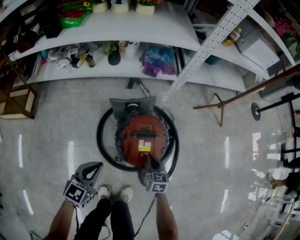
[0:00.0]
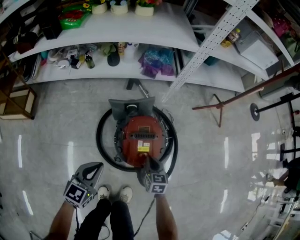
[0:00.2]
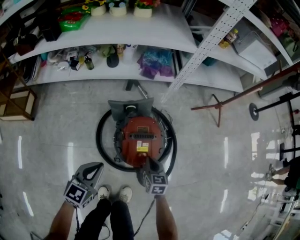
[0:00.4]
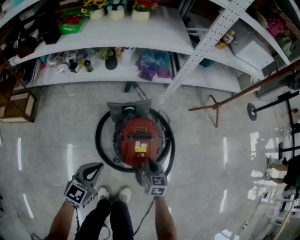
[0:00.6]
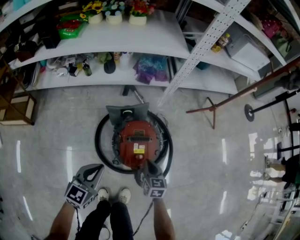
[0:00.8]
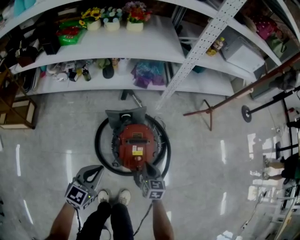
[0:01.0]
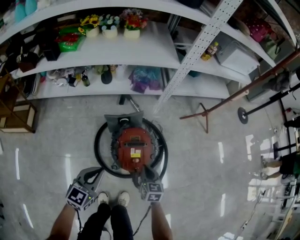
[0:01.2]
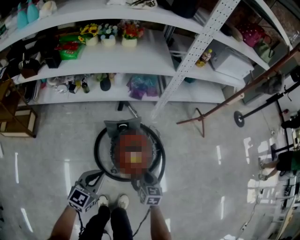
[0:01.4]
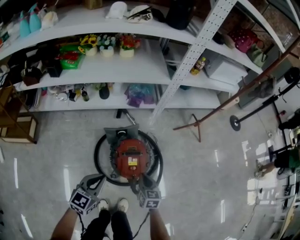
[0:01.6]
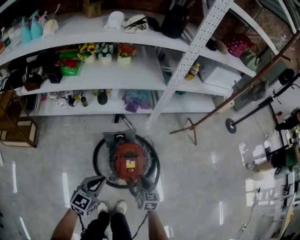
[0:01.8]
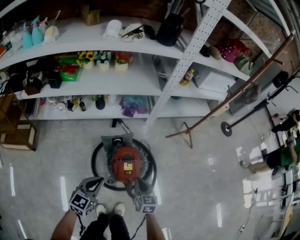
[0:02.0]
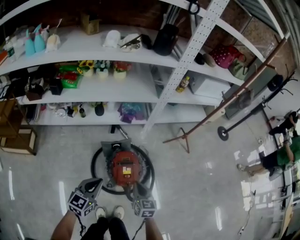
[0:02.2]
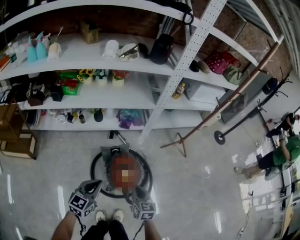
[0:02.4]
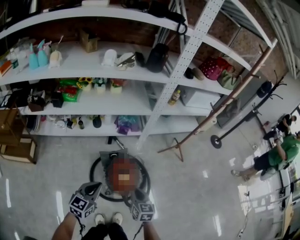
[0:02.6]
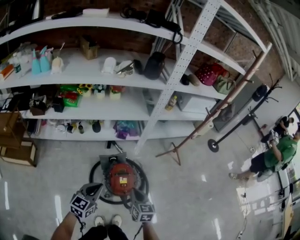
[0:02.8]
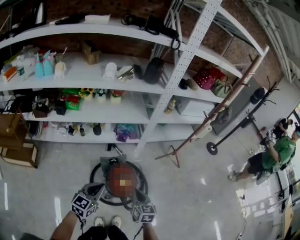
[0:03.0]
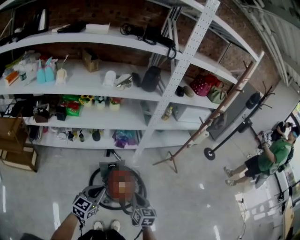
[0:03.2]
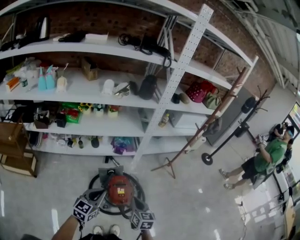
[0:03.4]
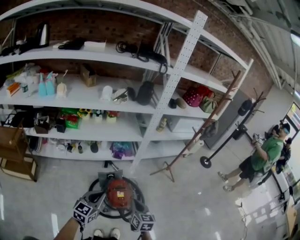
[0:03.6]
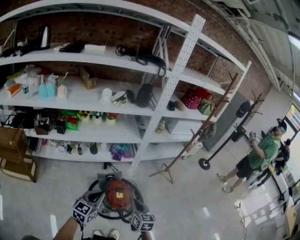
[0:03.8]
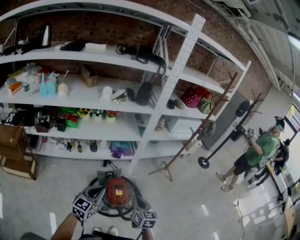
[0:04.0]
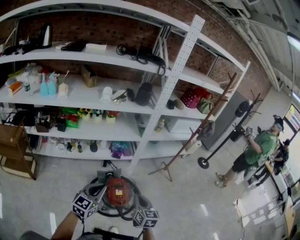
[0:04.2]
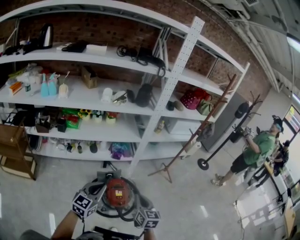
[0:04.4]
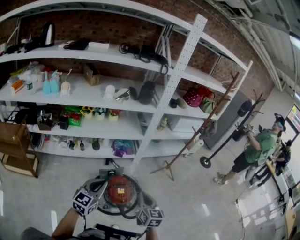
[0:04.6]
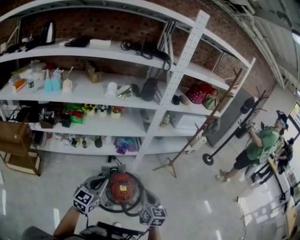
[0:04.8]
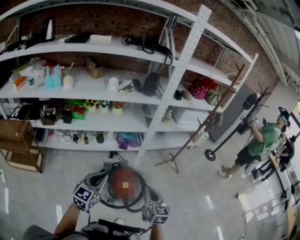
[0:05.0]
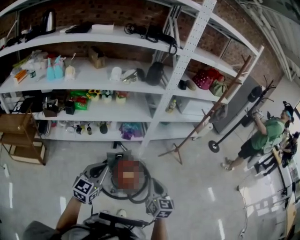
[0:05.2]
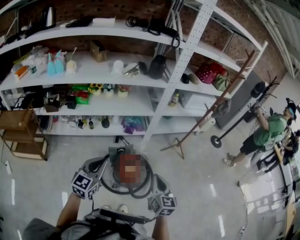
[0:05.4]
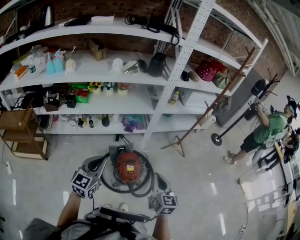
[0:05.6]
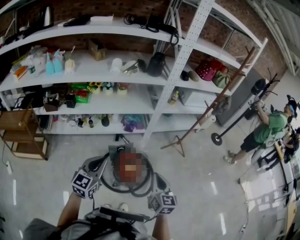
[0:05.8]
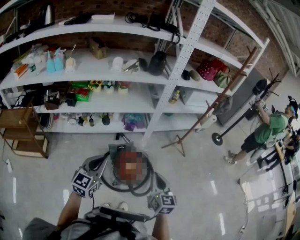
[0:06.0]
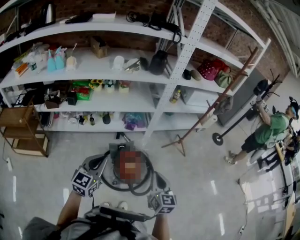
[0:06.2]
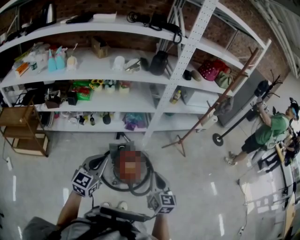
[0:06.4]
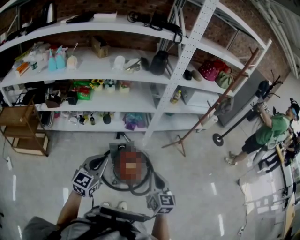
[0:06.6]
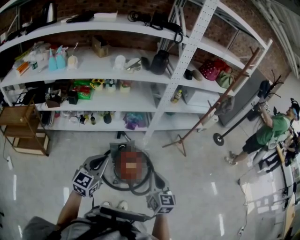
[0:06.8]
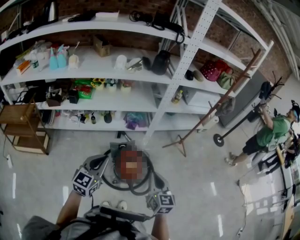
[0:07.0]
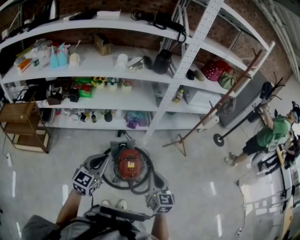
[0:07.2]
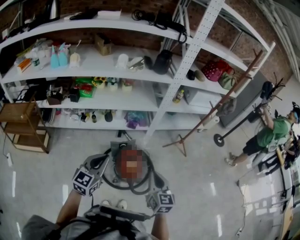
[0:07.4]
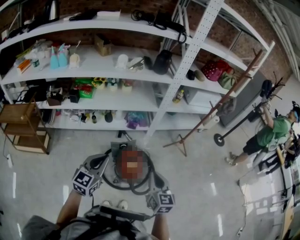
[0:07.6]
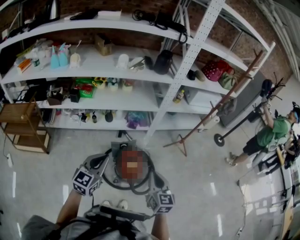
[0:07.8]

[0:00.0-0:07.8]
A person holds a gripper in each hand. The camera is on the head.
0:00.0 to 0:01.6: The two grippers go approximately 20 cm upward.
0:01.6 to 0:03.2: The two grippers go some 25 cm upward.
0:03.2 to 0:04.6: The grippers both shift upward by roughly 10 cm.
0:04.6 to 0:07.8: There are only small adjustments of the grippers.

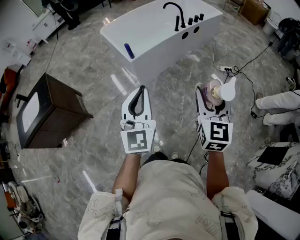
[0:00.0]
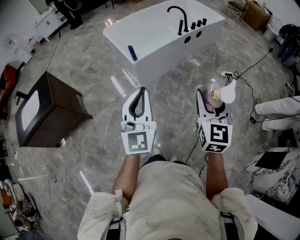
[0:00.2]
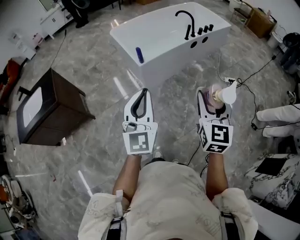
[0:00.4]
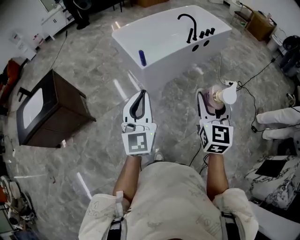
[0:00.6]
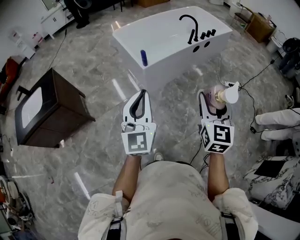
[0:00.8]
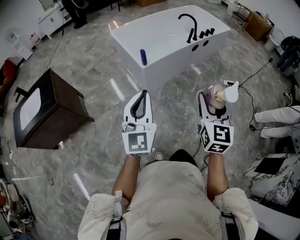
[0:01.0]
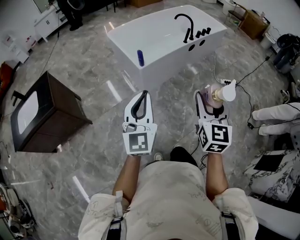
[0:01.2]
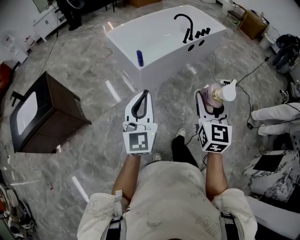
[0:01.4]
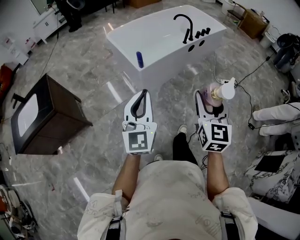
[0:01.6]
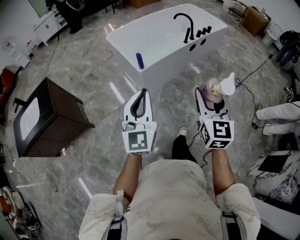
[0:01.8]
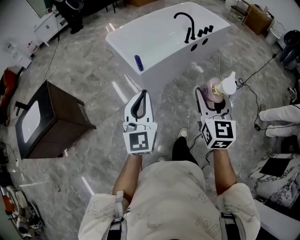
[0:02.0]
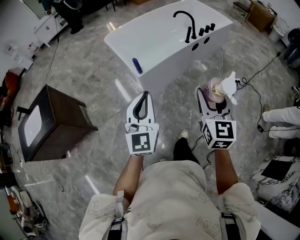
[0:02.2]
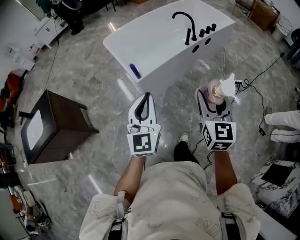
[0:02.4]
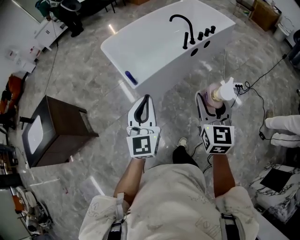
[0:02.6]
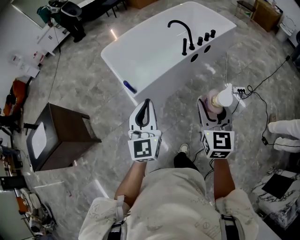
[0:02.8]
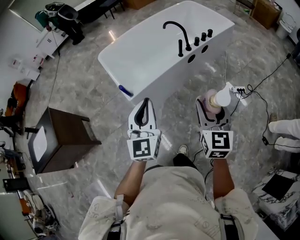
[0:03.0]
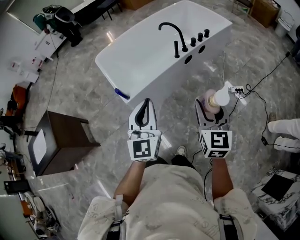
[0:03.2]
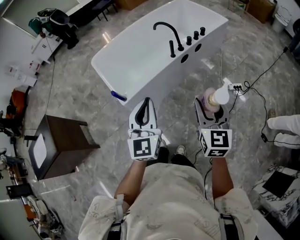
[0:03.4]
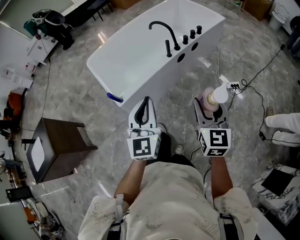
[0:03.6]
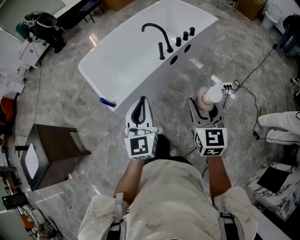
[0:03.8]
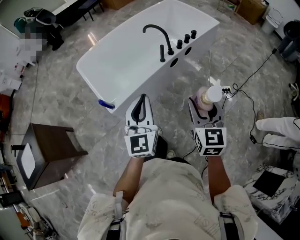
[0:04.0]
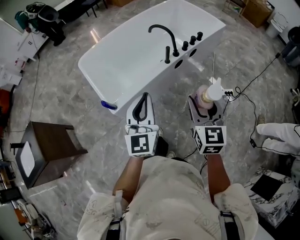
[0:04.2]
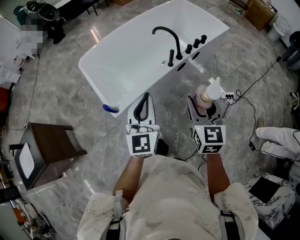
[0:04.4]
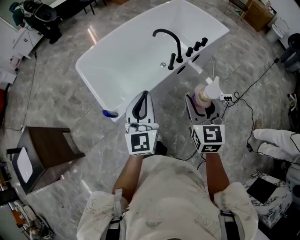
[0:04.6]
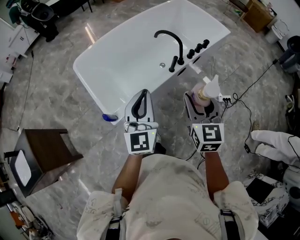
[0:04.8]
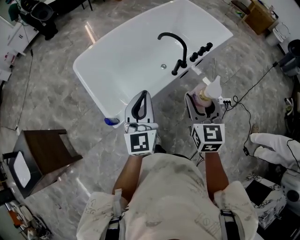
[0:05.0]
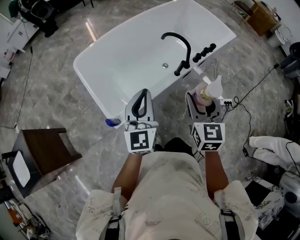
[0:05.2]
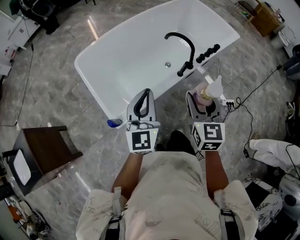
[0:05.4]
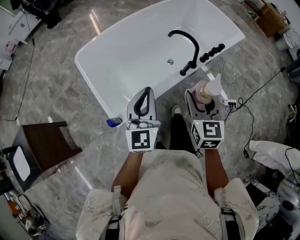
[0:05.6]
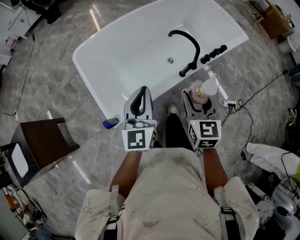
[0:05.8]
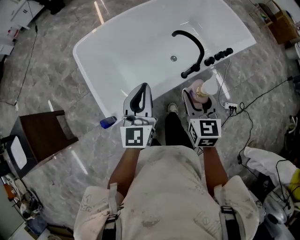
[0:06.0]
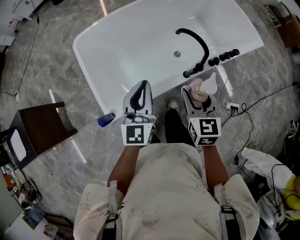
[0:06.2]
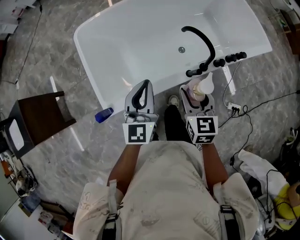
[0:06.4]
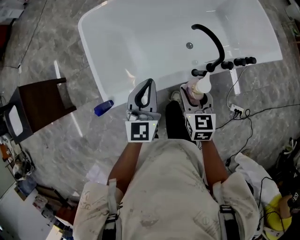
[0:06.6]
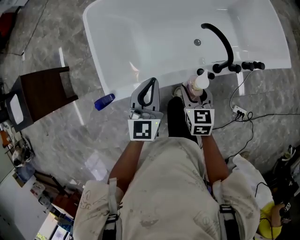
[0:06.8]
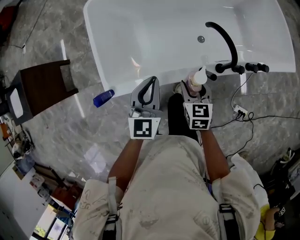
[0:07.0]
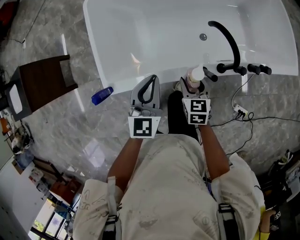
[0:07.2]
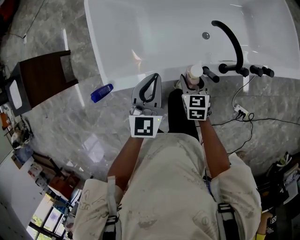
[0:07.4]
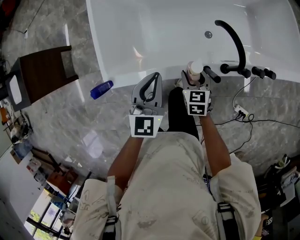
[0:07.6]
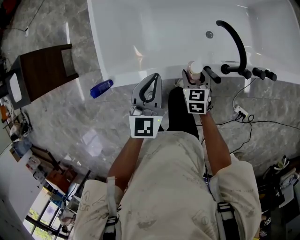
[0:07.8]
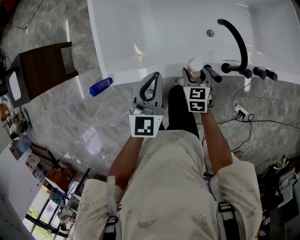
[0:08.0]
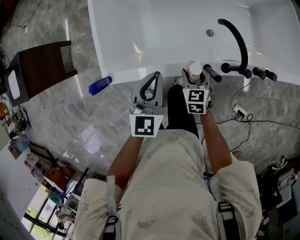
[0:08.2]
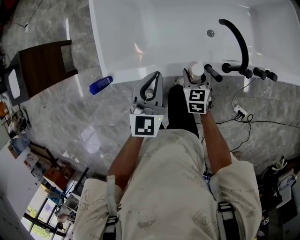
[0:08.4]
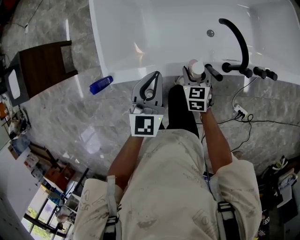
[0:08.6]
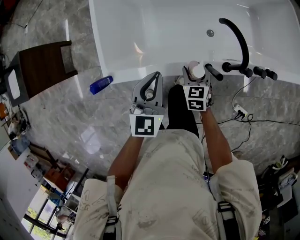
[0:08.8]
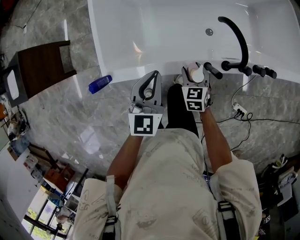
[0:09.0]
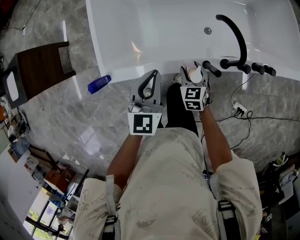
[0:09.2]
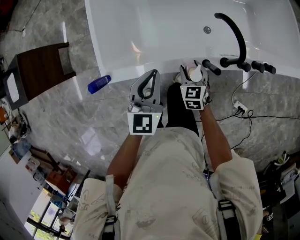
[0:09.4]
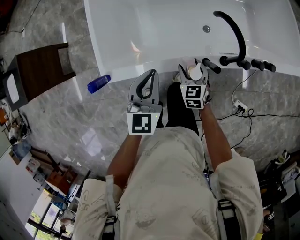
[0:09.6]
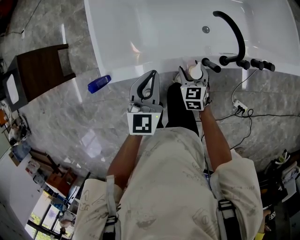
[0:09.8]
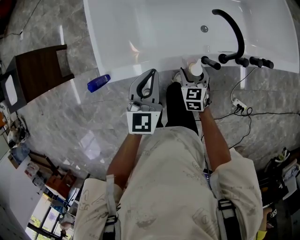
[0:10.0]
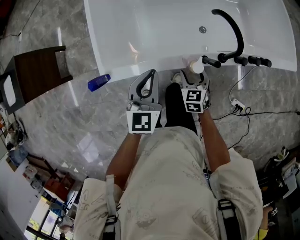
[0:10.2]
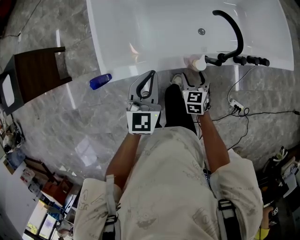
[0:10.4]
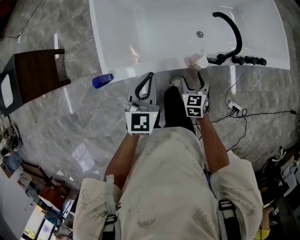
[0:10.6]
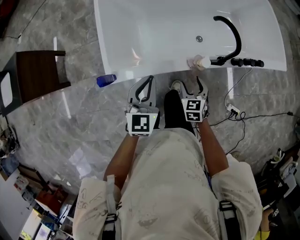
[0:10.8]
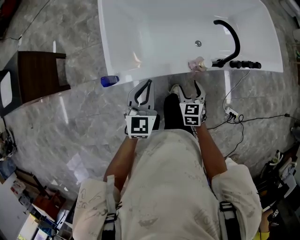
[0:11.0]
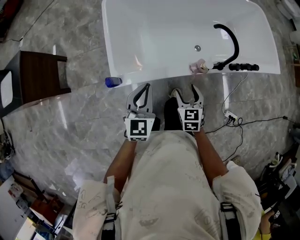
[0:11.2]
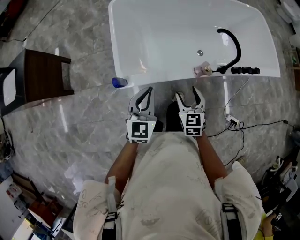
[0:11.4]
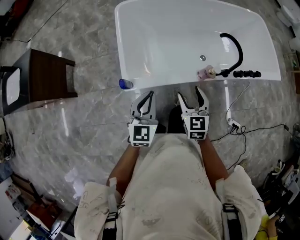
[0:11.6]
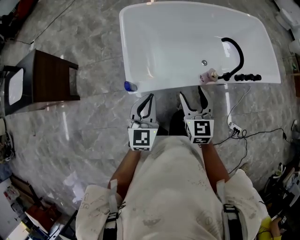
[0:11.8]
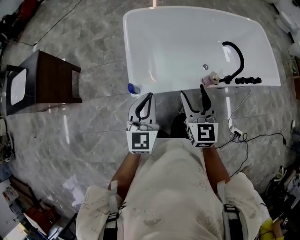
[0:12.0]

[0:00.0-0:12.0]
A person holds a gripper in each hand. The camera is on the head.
0:00.0 to 0:01.6: Both grippers move to the left, about 10 cm.
0:01.6 to 0:03.0: Both grippers travel together forward and to the right, approximately 35 cm.
0:03.0 to 0:04.4: Both grippers move forward, approximately 20 cm.
0:04.4 to 0:06.0: The grippers both shift forward by approximately 25 cm.
0:06.0 to 0:07.6: The right gripper shifts some 30 cm downward and forward, and swivels roughly 30 degrees, while the left gripper moves downward and forward, roughly 15 cm, and turns by about 30 degrees.
0:07.6 to 0:09.0: There are only small adjustments of the grippers.
0:09.0 to 0:10.4: The right gripper goes roughly 5 cm backward. Meanwhile the left gripper moves roughly 5 cm.
0:10.4 to 0:12.0: The left gripper moves to the left, upward and backward, approximately 25 cm. Meanwhile the right gripper moves upward and to the left, about 35 cm, and tilts its fingers some 30 degrees upward.

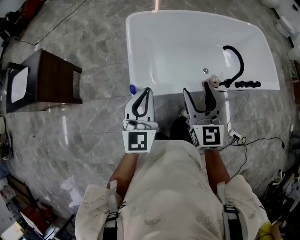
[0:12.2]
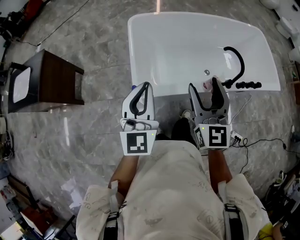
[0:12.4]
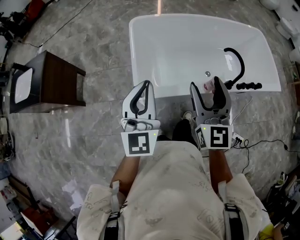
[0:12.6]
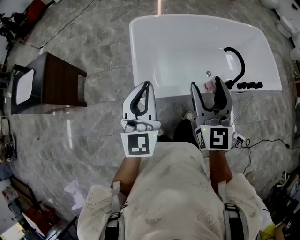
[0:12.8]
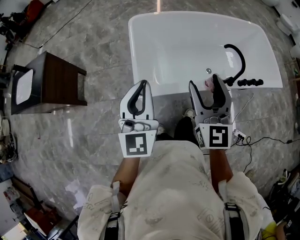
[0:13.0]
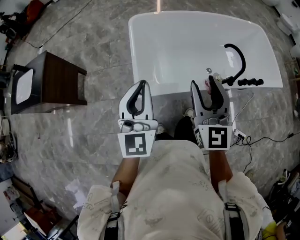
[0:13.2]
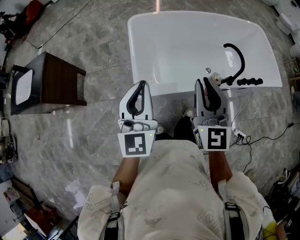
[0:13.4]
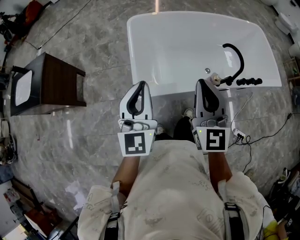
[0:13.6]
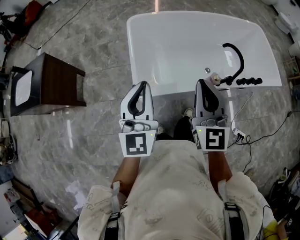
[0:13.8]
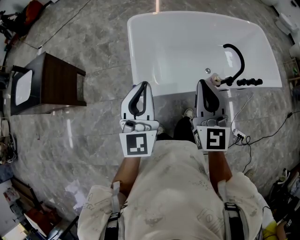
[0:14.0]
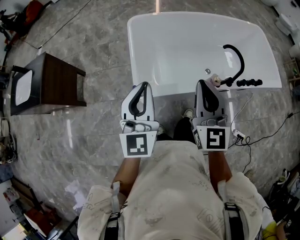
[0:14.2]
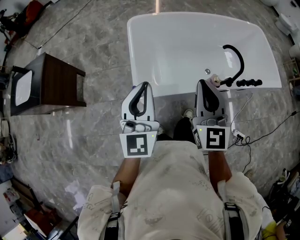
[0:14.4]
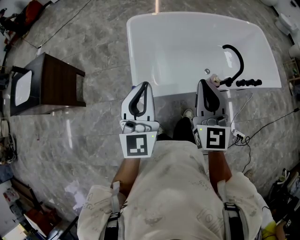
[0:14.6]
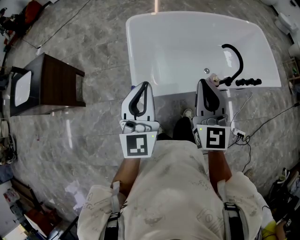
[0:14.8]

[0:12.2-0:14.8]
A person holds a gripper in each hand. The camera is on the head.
0:12.2 to 0:13.4: The two grippers go about 5 cm upward. The right gripper closes up.
0:13.4 to 0:14.8: The grippers make only small movements.

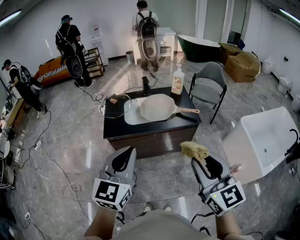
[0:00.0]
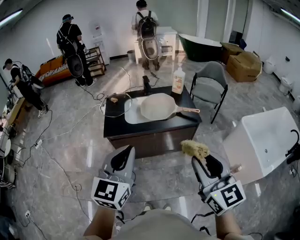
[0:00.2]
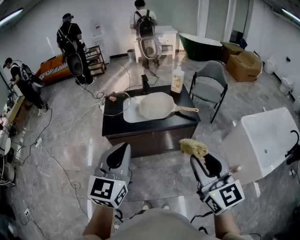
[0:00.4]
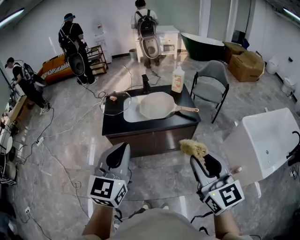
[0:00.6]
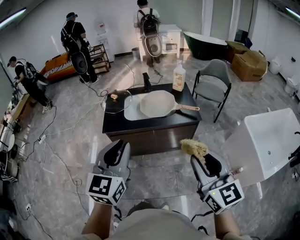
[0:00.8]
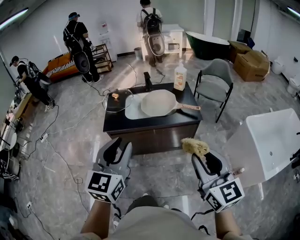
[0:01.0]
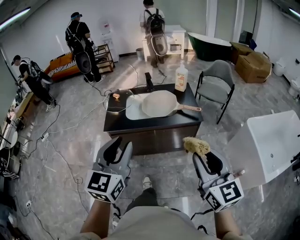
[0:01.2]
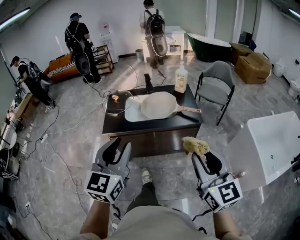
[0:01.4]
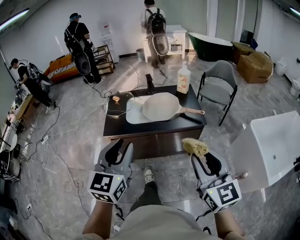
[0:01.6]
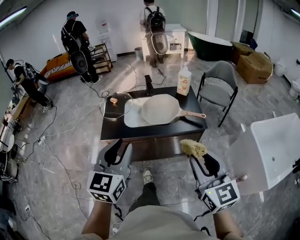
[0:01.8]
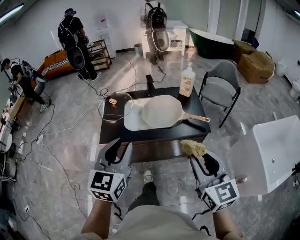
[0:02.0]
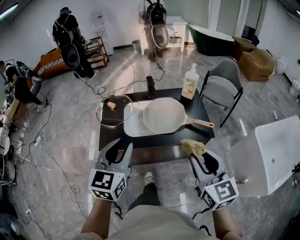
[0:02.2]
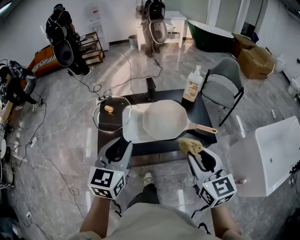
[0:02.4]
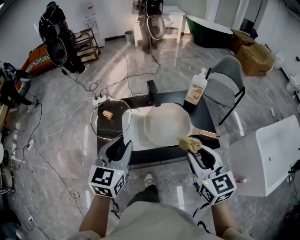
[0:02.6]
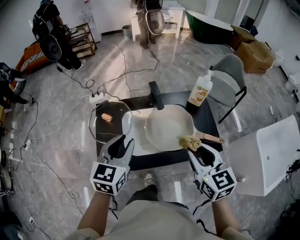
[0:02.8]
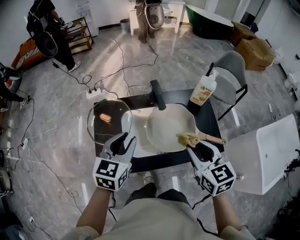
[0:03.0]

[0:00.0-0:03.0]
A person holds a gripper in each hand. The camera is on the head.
0:00.0 to 0:01.6: The right gripper goes about 10 cm to the right, downward and forward. Meanwhile the left gripper ends up roughly 5 cm from where it was, and opens.
0:01.6 to 0:03.0: The pair of grippers is taken forward, about 40 cm. The right gripper turns by approximately 30 degrees. The left gripper turns by some 20 degrees.
